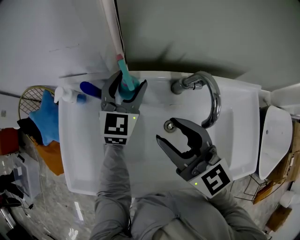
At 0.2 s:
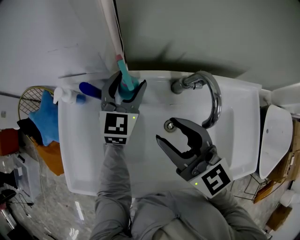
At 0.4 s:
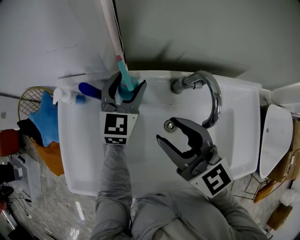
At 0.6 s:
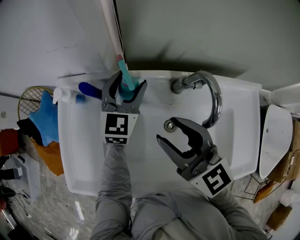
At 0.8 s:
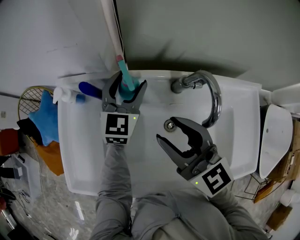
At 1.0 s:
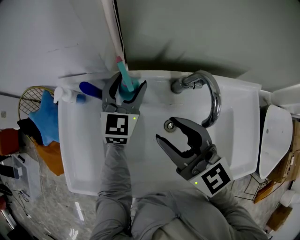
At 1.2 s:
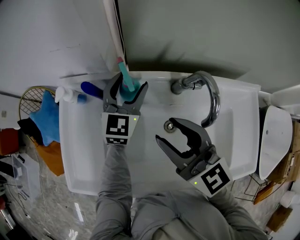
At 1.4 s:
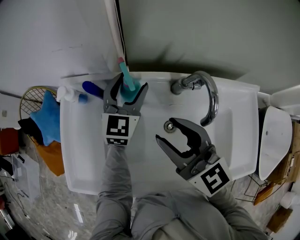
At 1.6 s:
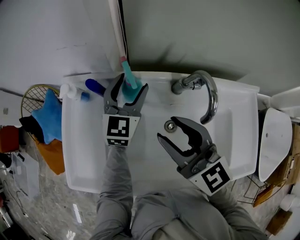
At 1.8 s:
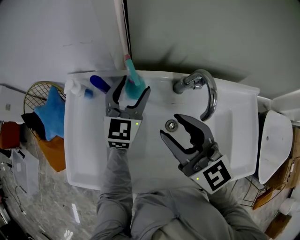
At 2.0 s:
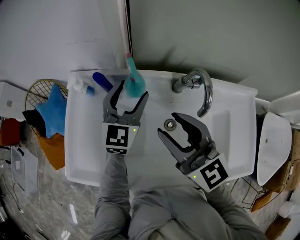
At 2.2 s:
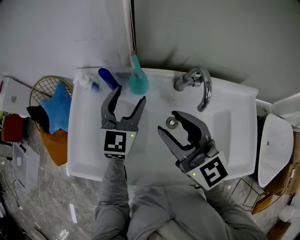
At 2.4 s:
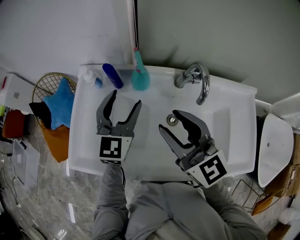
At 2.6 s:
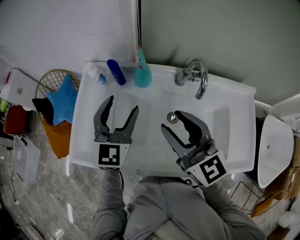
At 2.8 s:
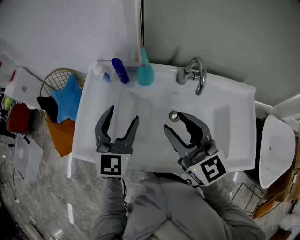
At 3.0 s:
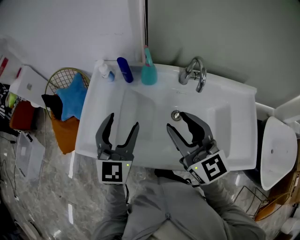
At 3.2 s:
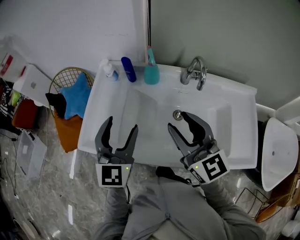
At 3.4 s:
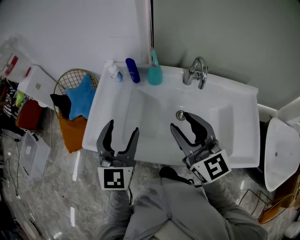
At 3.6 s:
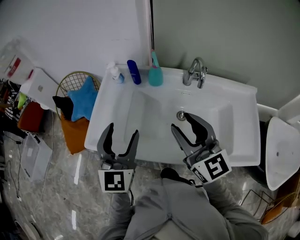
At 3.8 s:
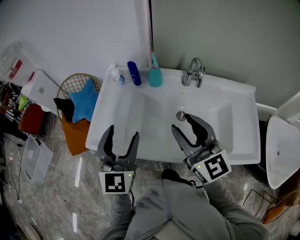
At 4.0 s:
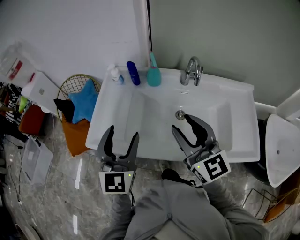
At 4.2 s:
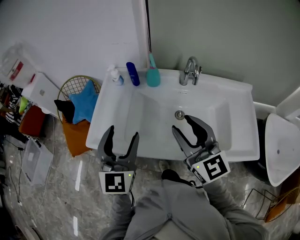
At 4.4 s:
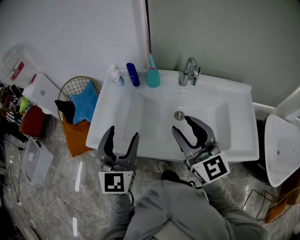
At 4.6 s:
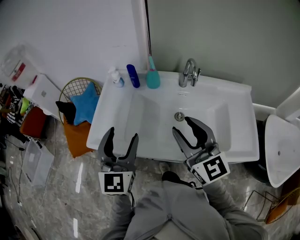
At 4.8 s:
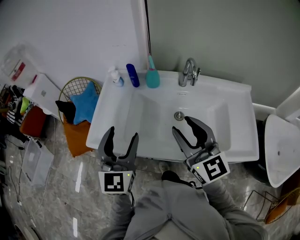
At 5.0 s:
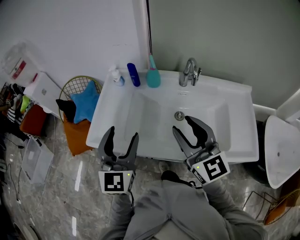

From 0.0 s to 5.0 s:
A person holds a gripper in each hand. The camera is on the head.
From 0.0 s to 1.6 s: There are only small adjustments of the grippers.
From 1.6 s to 3.4 s: The right gripper goes about 15 cm backward. The left gripper goes about 35 cm backward and to the left.
From 3.4 s to 5.0 s: The two grippers go roughly 5 cm backward.

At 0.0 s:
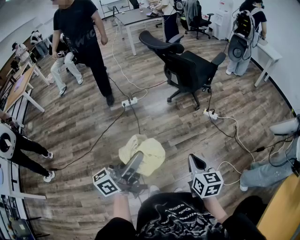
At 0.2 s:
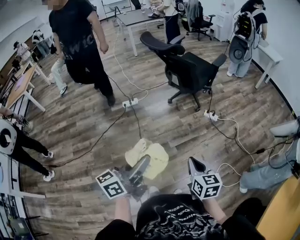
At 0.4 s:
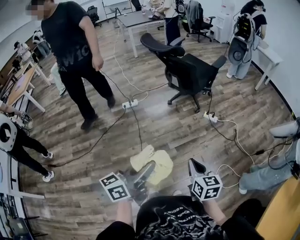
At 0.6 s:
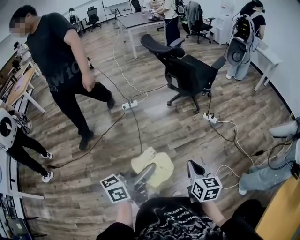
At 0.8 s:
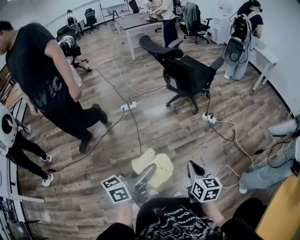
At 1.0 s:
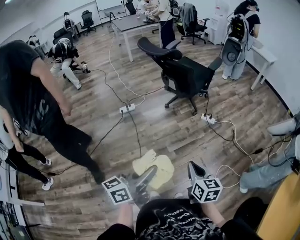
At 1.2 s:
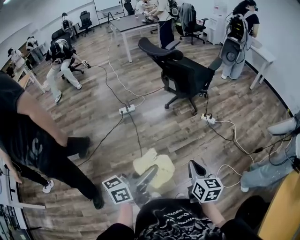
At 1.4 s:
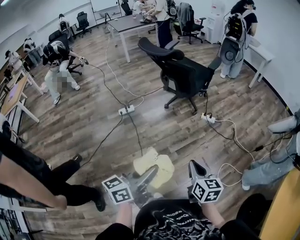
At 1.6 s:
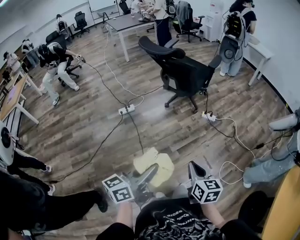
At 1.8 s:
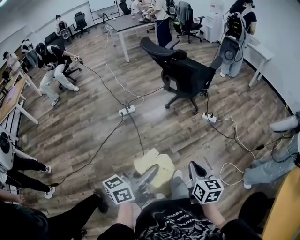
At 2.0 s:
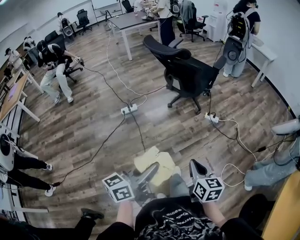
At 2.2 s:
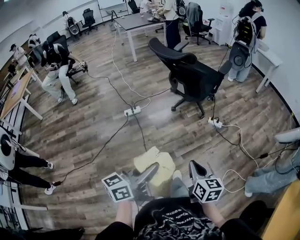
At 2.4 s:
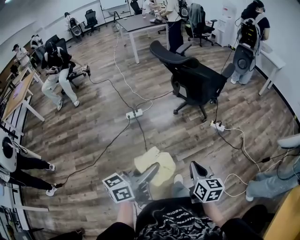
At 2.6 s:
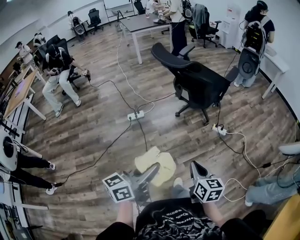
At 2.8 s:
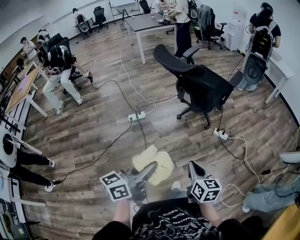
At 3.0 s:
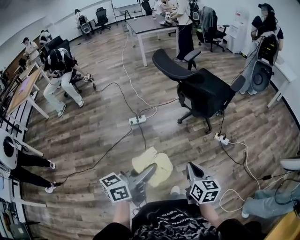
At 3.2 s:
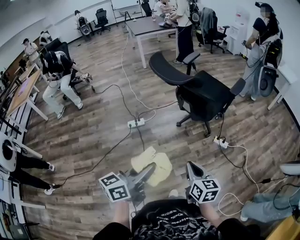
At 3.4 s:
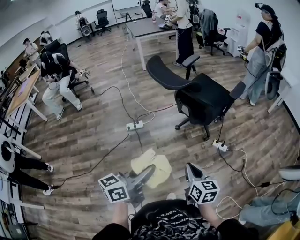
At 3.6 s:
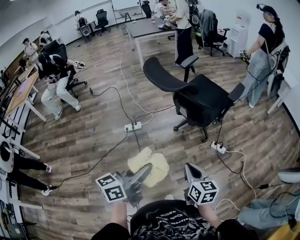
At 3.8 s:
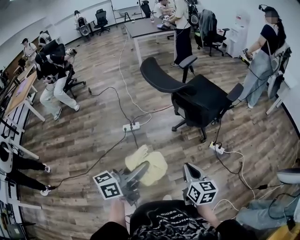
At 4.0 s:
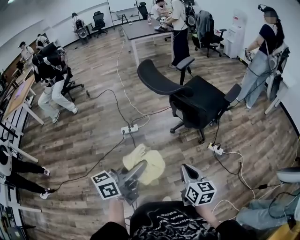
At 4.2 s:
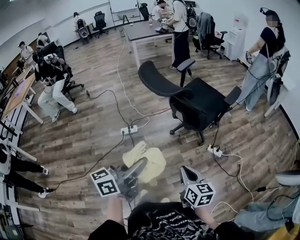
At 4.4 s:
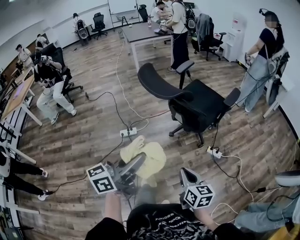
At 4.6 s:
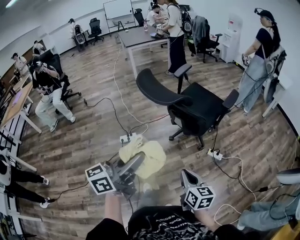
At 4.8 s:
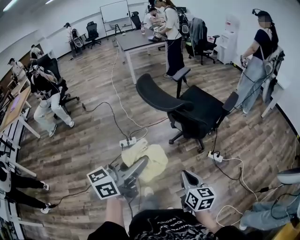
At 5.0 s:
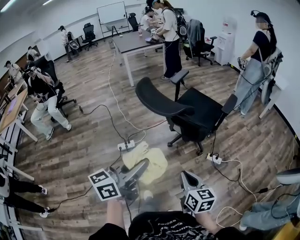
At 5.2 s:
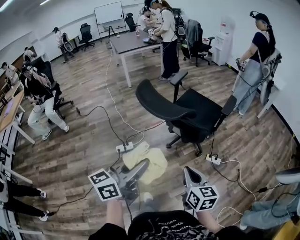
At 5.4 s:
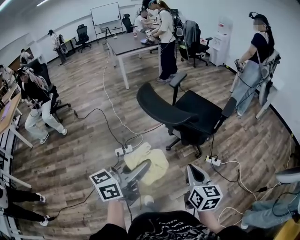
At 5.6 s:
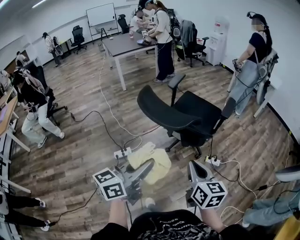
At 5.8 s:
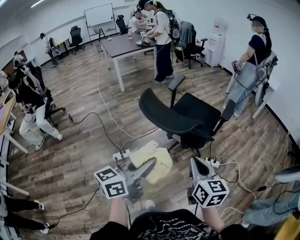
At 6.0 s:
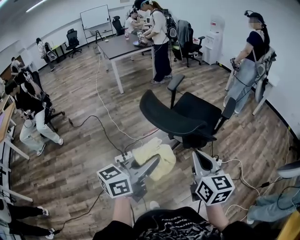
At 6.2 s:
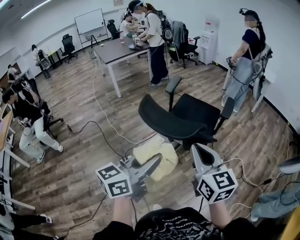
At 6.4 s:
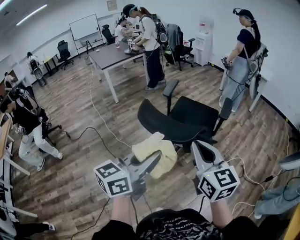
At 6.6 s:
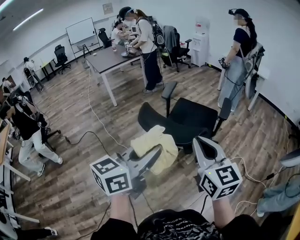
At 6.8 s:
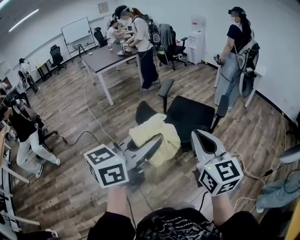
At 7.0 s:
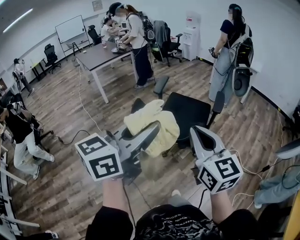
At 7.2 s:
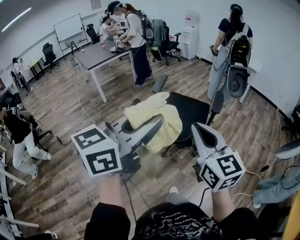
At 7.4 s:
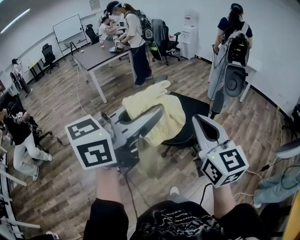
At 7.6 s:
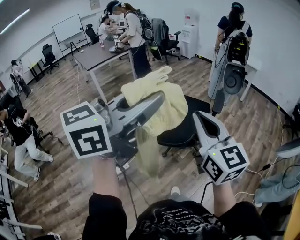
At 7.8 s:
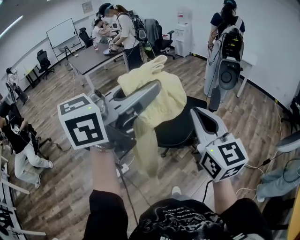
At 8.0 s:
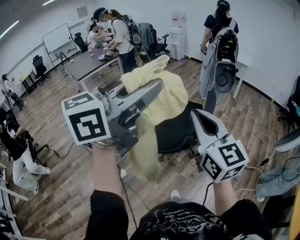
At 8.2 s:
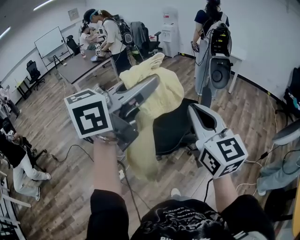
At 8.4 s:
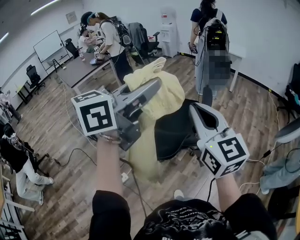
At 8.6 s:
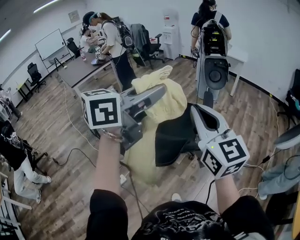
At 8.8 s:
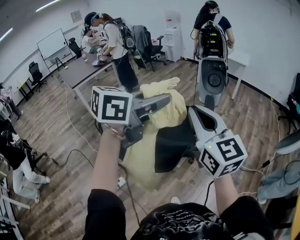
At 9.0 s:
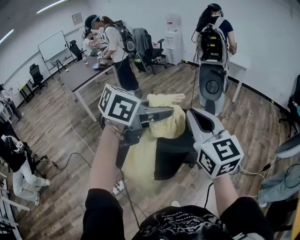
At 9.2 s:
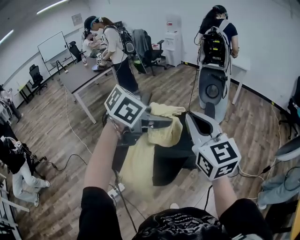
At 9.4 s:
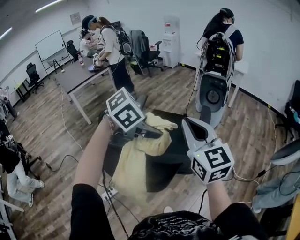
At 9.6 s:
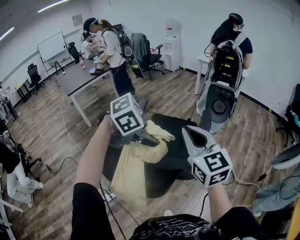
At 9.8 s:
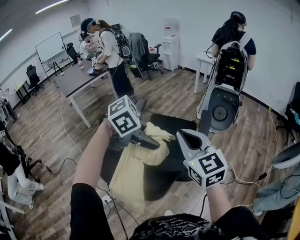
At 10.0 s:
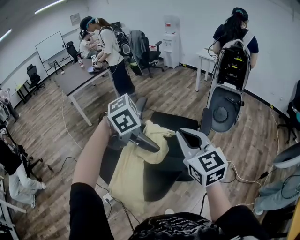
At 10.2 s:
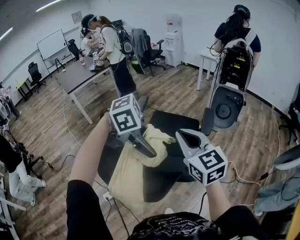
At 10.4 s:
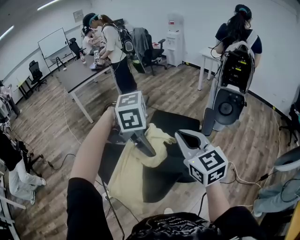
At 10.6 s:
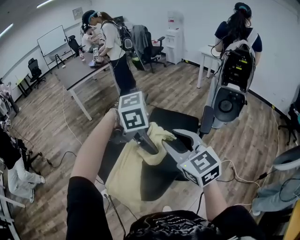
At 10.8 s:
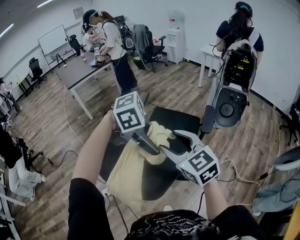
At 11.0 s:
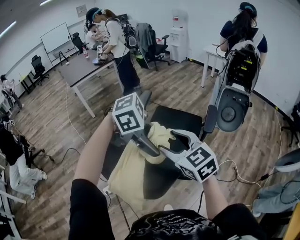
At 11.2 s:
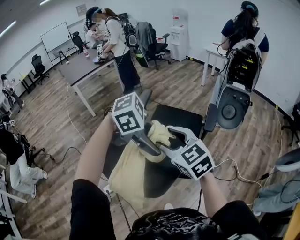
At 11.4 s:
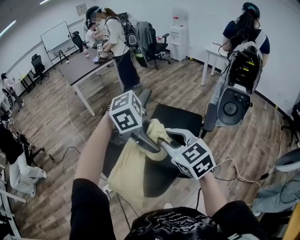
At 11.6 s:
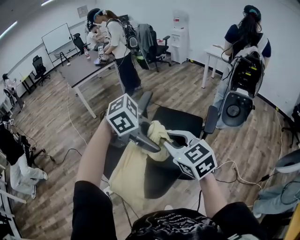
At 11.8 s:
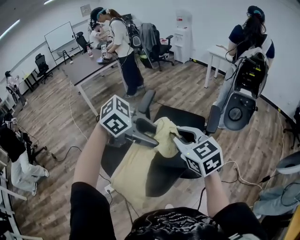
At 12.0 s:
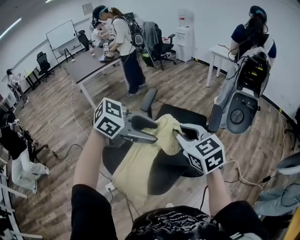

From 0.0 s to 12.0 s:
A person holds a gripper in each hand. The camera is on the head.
From 0.0 s to 1.6 s: The right gripper travels to the left by about 5 cm.
From 1.6 s to 3.0 s: The grippers both shift forward by some 20 cm.
From 3.0 s to 4.4 s: The right gripper moves forward, roughly 10 cm. The left gripper shifts roughly 15 cm forward and upward.
From 4.4 s to 6.0 s: The left gripper shifts approximately 20 cm forward and to the left; the right gripper travels upward, forward and to the left by approximately 25 cm, and rotates approximately 20 degrees.
From 6.0 s to 7.6 s: Both grippers travel together upward and forward, some 20 cm. The left gripper turns by some 30 degrees. The right gripper changes its angle by roughly 20 degrees.
From 7.6 s to 9.0 s: The right gripper shifts approximately 15 cm forward. Meanwhile the left gripper travels forward and downward by about 20 cm, and swivels roughly 30 degrees.
From 9.0 s to 10.4 s: The left gripper travels downward by approximately 10 cm, points its fingers about 30 degrees further downward, and opens its fingers. The right gripper travels downward by some 10 cm.
From 10.4 s to 12.0 s: The left gripper changes its angle by about 40 degrees. Meanwhile the right gripper opens, then closes once more.

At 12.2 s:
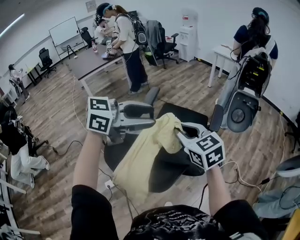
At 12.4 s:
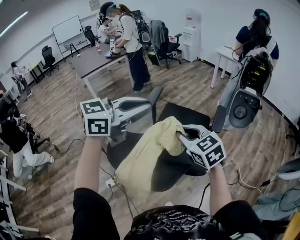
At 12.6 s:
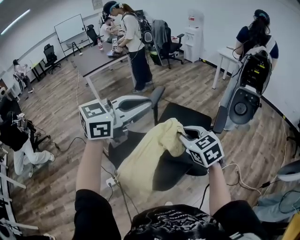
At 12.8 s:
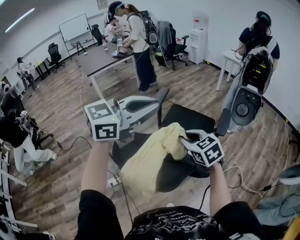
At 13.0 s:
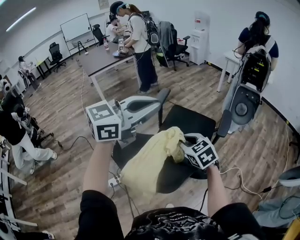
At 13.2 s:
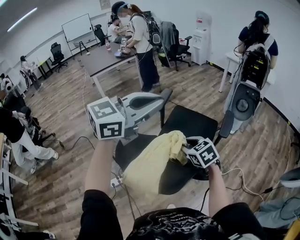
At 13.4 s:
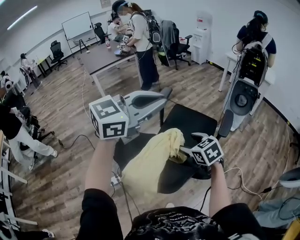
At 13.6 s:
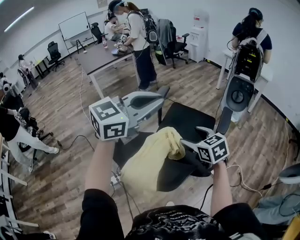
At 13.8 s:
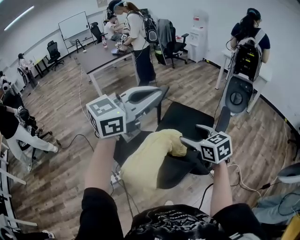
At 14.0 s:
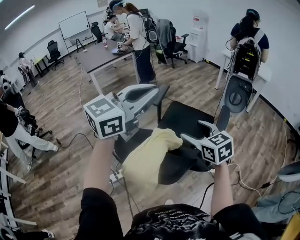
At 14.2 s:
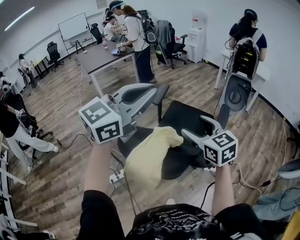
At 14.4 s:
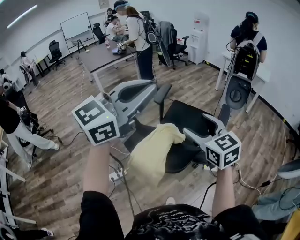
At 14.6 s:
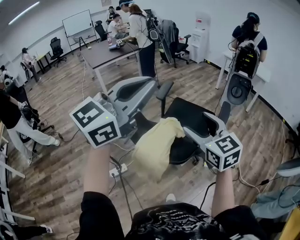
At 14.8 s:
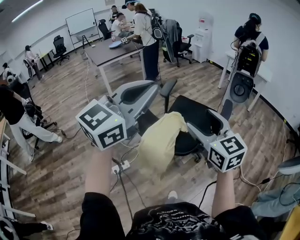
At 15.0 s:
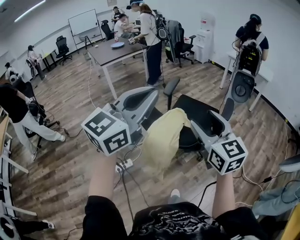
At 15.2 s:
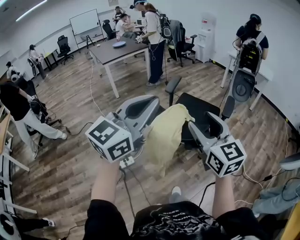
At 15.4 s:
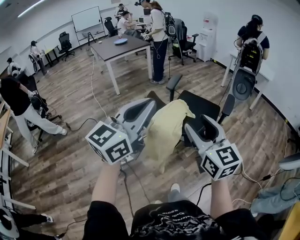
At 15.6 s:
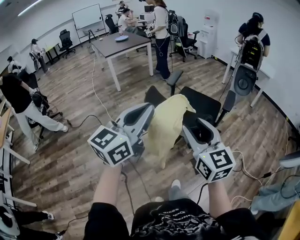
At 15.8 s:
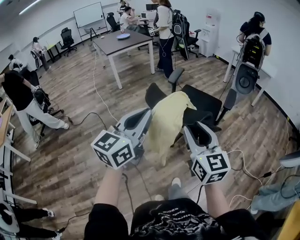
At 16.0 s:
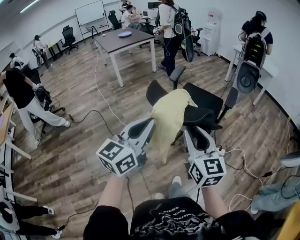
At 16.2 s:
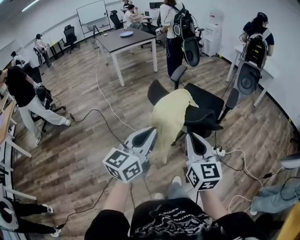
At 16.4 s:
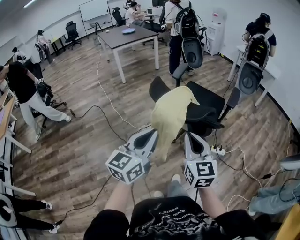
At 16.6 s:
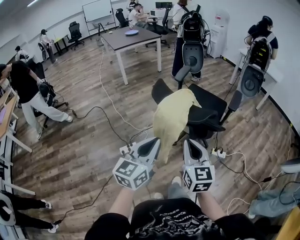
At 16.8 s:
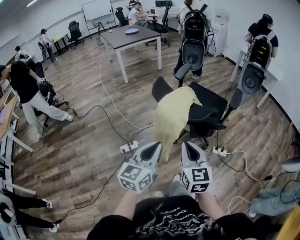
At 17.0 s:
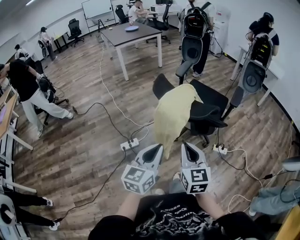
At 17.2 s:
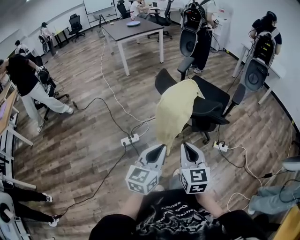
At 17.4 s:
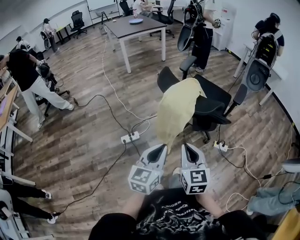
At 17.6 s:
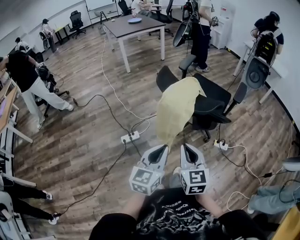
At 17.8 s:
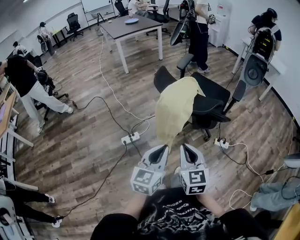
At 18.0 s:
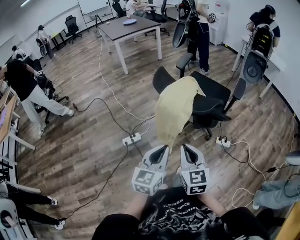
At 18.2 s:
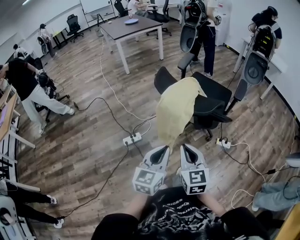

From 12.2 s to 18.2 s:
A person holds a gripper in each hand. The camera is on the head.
From 12.2 s to 13.8 s: The left gripper moves upward, about 5 cm, turns by about 30 degrees, and closes up. The right gripper opens its fingers.
From 13.8 s to 15.2 s: The left gripper goes approximately 20 cm backward. Meanwhile the right gripper travels backward and upward by approximately 25 cm, and swivels about 30 degrees.
From 15.2 s to 16.6 s: Both grippers travel together downward and backward, roughly 20 cm. The right gripper closes up; the left gripper changes its angle by approximately 20 degrees.
From 16.6 s to 18.2 s: Both grippers travel together downward, some 10 cm.
